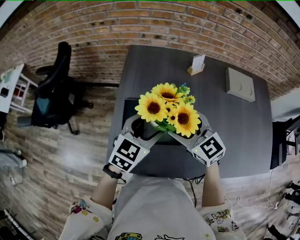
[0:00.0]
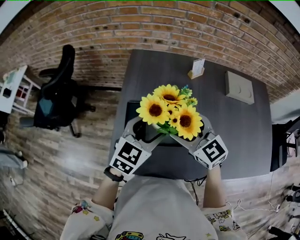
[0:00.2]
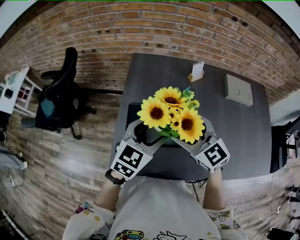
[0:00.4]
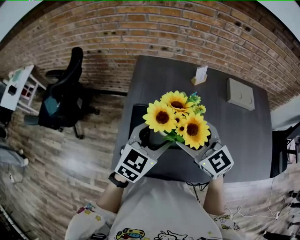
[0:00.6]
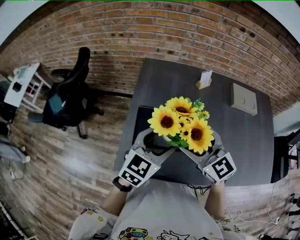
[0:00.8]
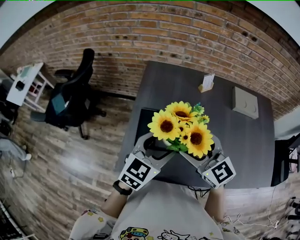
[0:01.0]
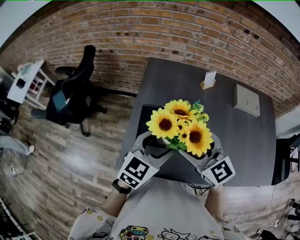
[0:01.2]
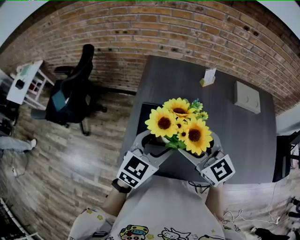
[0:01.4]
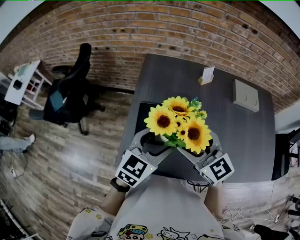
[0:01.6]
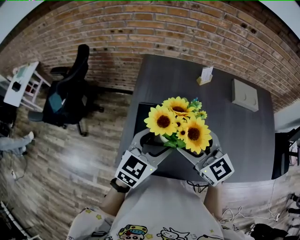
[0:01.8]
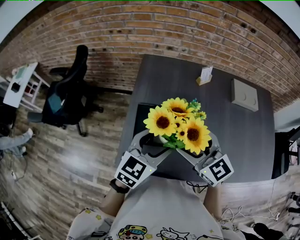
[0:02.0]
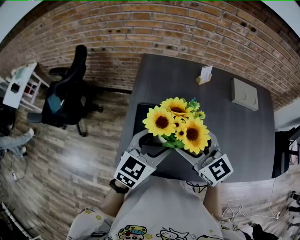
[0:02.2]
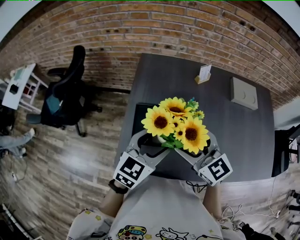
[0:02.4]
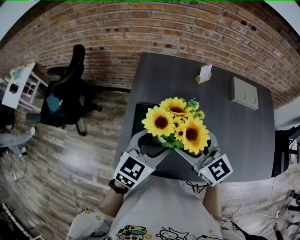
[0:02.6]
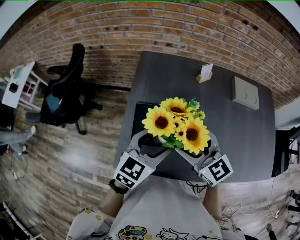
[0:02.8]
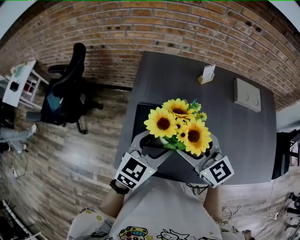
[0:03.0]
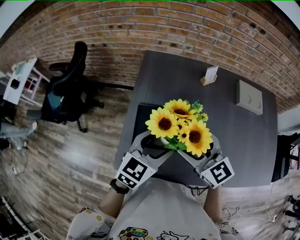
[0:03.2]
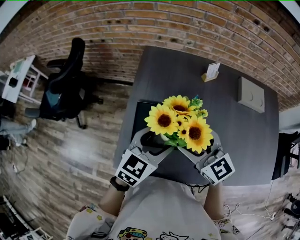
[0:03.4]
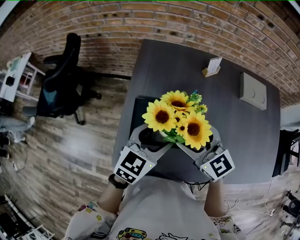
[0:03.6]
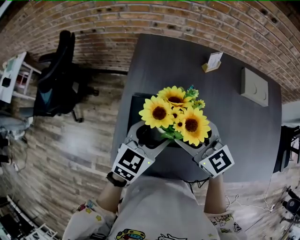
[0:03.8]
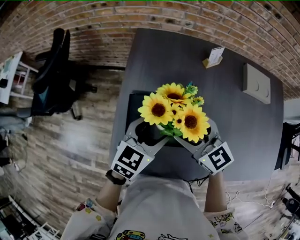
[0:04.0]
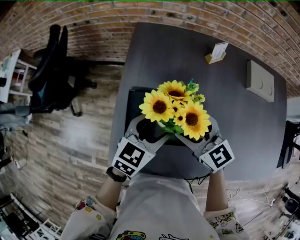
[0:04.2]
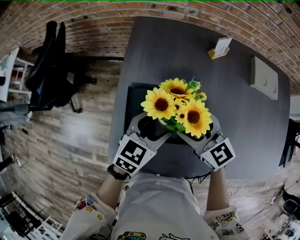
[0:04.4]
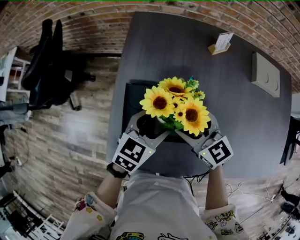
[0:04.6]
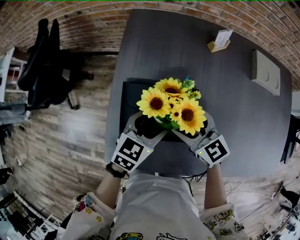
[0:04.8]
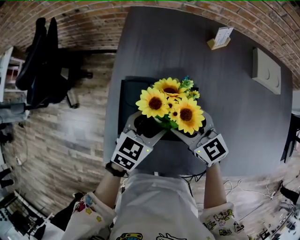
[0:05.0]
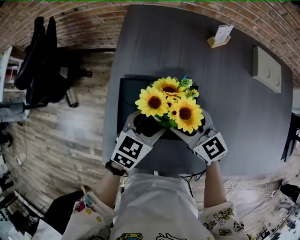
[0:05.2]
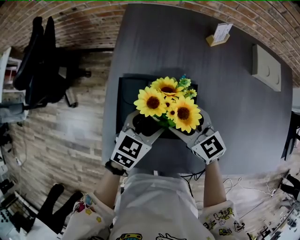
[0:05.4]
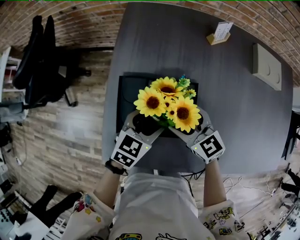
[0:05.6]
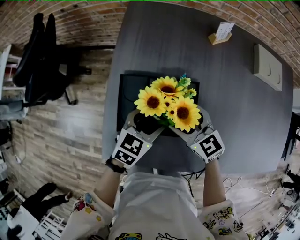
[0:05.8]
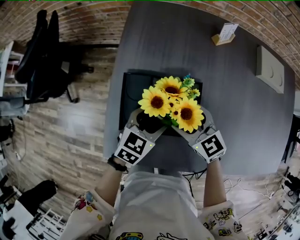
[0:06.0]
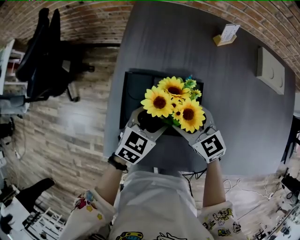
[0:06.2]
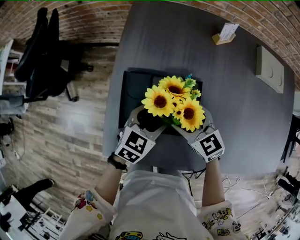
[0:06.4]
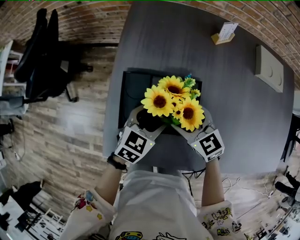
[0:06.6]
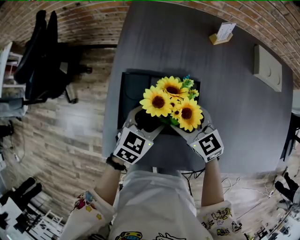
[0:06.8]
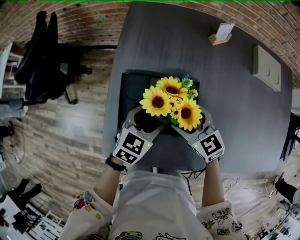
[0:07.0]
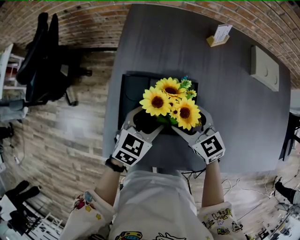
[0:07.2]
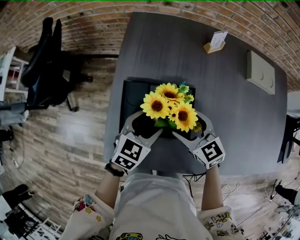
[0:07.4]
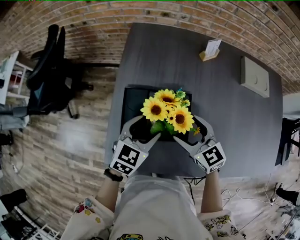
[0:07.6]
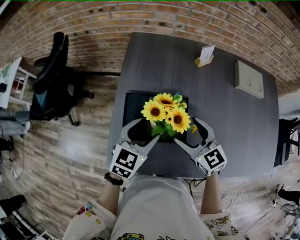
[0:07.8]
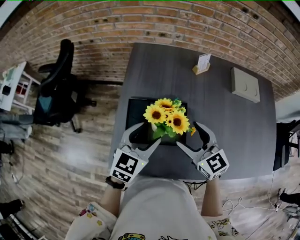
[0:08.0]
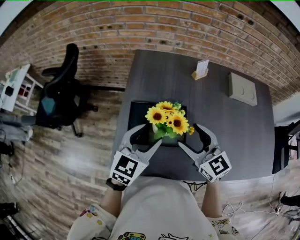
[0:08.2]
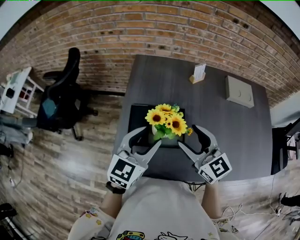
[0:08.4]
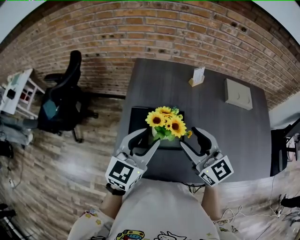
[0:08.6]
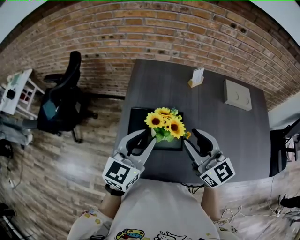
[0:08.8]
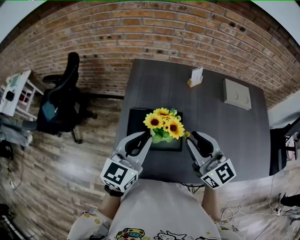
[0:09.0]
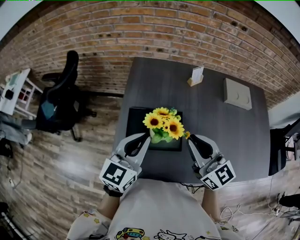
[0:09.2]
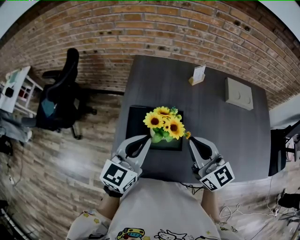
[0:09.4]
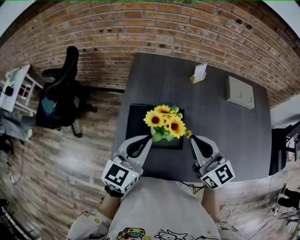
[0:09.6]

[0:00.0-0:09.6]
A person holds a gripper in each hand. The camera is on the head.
0:00.0 to 0:01.6: The grippers both shift backward and upward by some 10 cm.
0:01.6 to 0:03.2: The grippers stay close to where they were, moving slightly.
0:03.2 to 0:04.8: The two grippers go about 15 cm downward.
0:04.8 to 0:06.4: The grippers move only a little.
0:06.4 to 0:08.0: Both grippers travel together upward, some 10 cm.
0:08.0 to 0:09.6: The two grippers go some 10 cm upward. The right gripper closes up; the left gripper closes up.

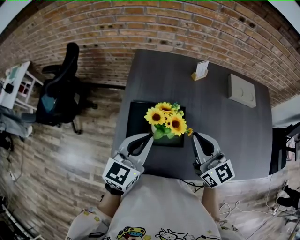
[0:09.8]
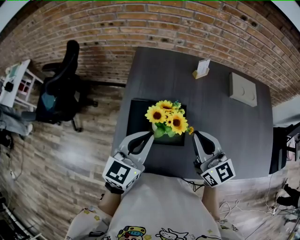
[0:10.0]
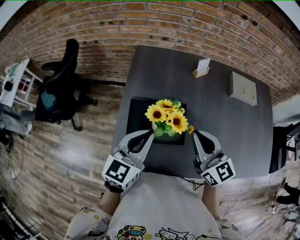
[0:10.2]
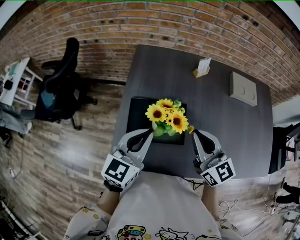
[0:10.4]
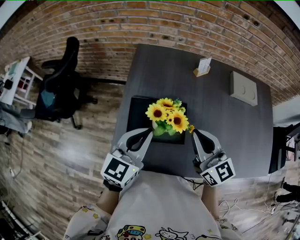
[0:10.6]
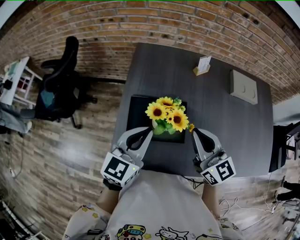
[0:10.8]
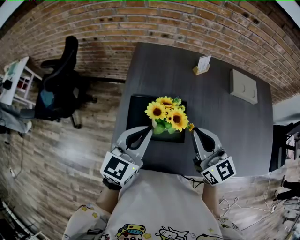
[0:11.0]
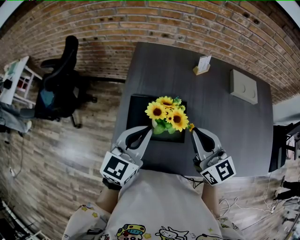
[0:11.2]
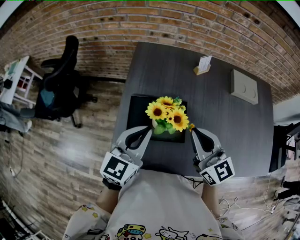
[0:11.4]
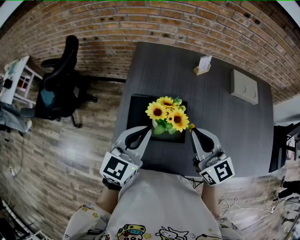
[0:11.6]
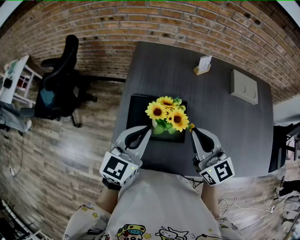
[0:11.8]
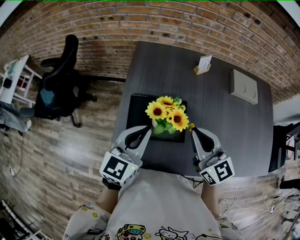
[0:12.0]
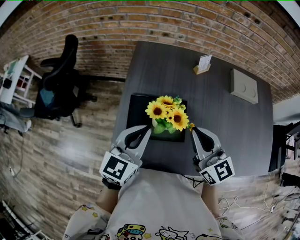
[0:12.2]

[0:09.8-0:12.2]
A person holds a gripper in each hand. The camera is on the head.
0:09.8 to 0:12.2: The two grippers keep their place.

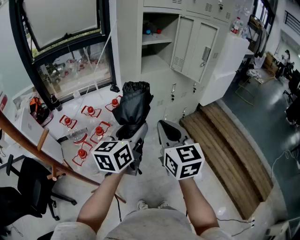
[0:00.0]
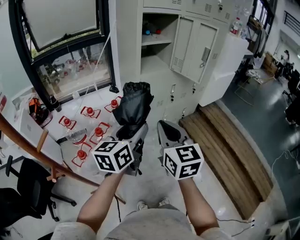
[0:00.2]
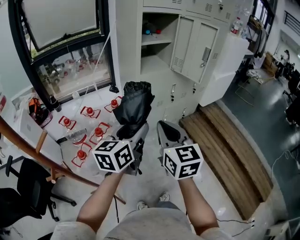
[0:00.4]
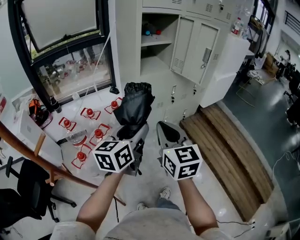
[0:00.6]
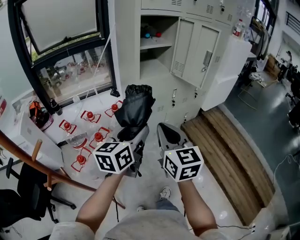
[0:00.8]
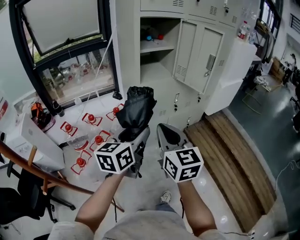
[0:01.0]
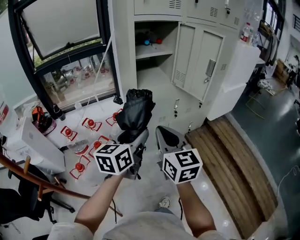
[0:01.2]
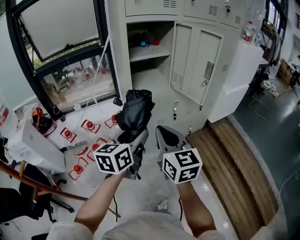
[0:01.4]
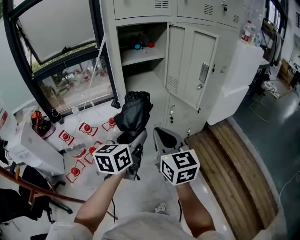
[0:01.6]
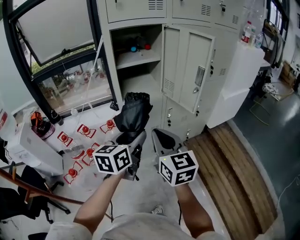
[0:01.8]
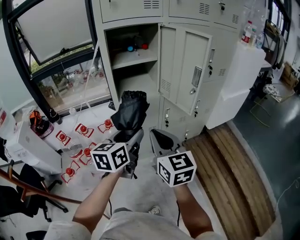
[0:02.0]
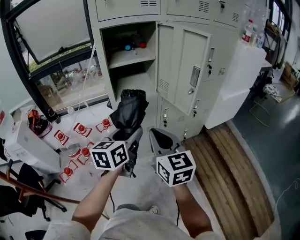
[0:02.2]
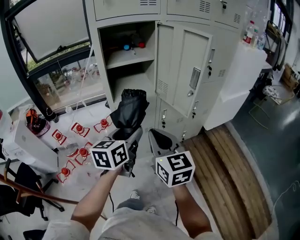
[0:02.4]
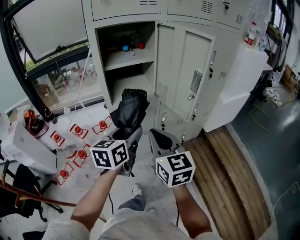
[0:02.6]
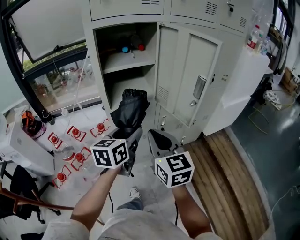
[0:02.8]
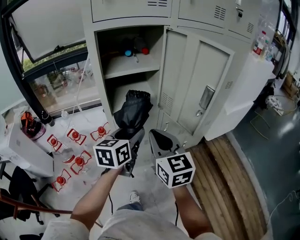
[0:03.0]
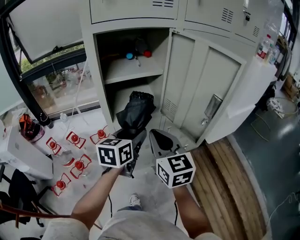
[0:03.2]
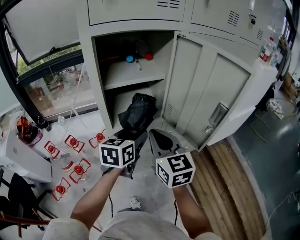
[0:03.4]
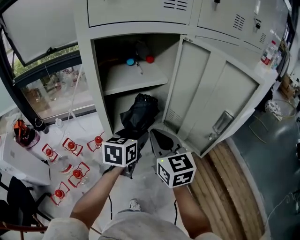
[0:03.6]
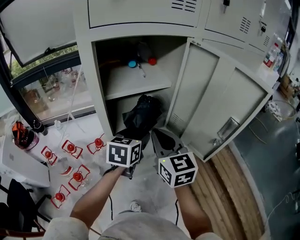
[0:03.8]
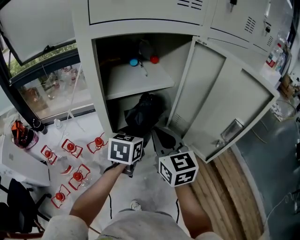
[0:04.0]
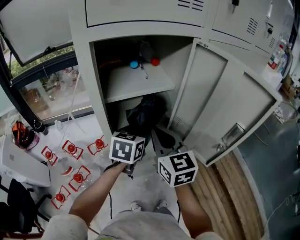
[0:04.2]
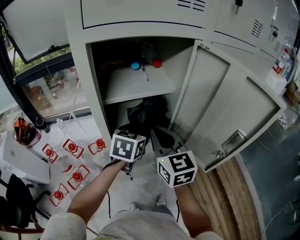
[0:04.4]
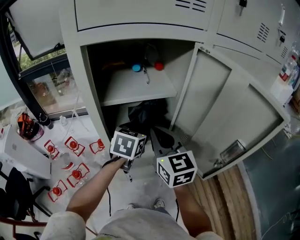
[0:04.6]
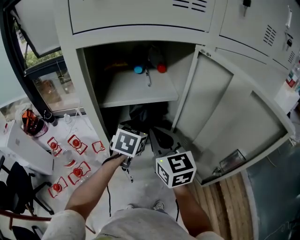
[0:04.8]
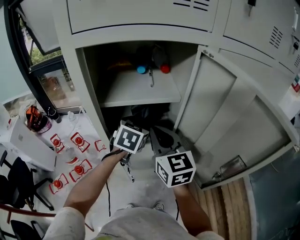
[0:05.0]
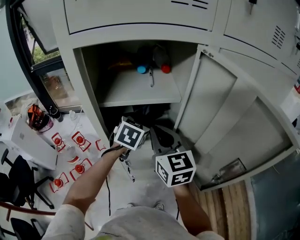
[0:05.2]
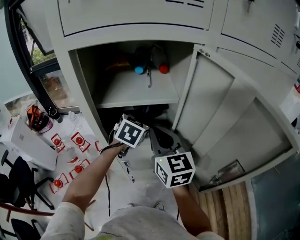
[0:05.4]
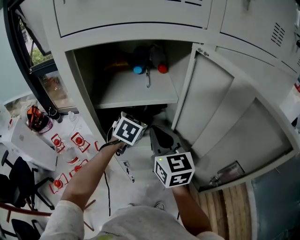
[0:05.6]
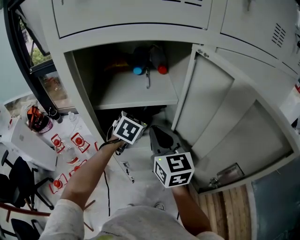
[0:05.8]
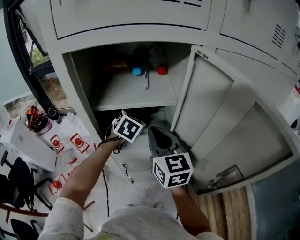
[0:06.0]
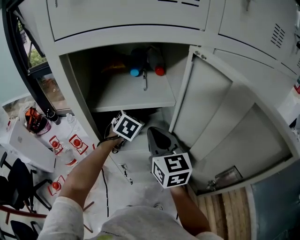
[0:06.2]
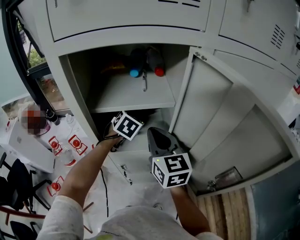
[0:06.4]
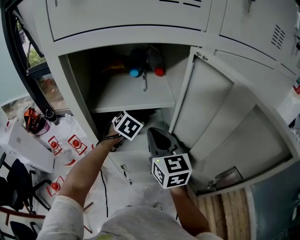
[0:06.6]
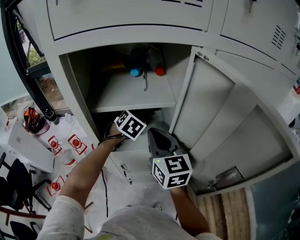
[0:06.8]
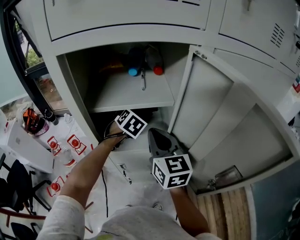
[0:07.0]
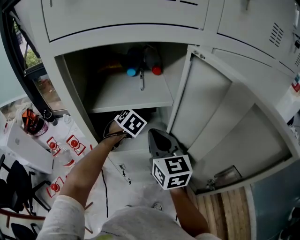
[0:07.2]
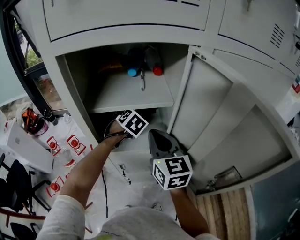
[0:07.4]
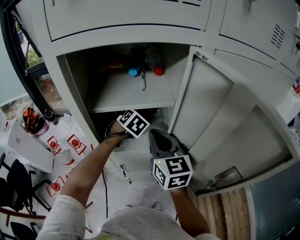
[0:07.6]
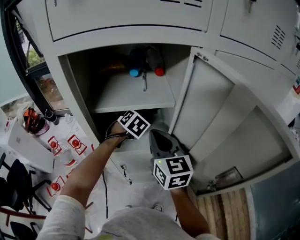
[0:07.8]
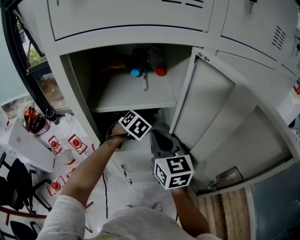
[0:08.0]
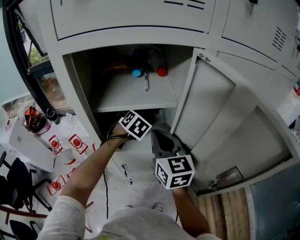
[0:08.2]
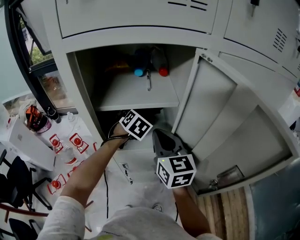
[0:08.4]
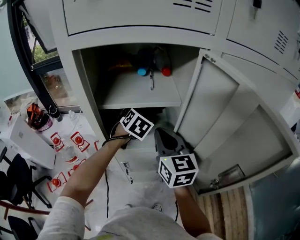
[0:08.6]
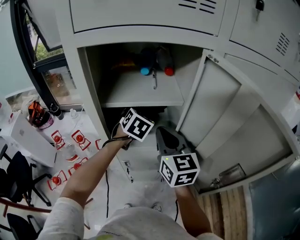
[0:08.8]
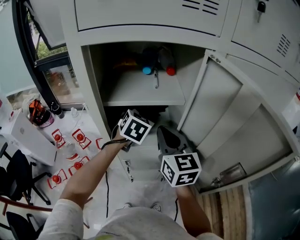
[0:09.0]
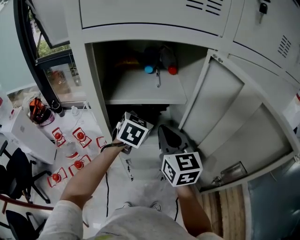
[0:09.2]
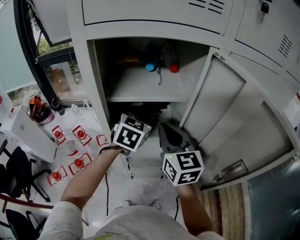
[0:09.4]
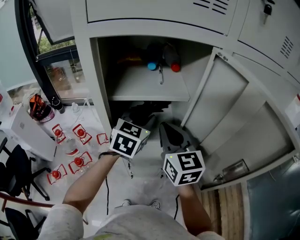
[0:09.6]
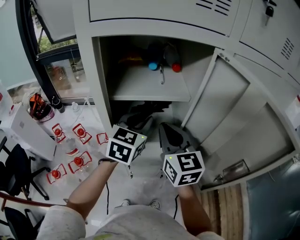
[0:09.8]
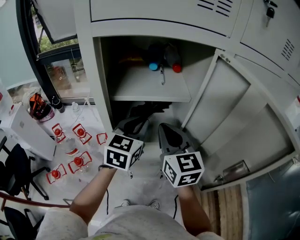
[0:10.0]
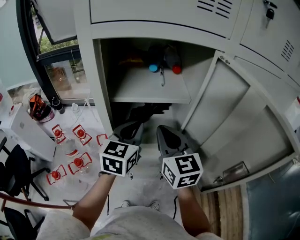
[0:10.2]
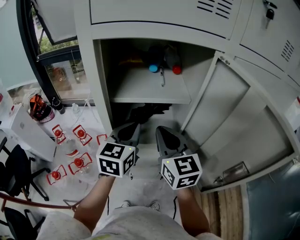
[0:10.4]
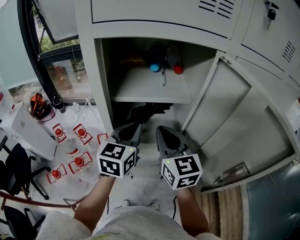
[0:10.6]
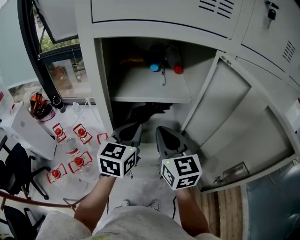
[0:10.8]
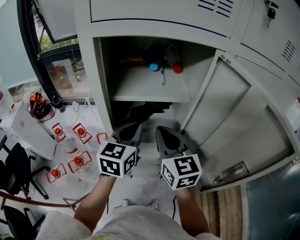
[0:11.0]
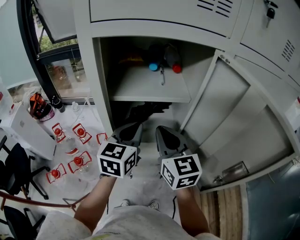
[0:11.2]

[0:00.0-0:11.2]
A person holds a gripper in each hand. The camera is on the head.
0:00.0 to 0:01.6: Both grippers travel together forward and to the right, roughly 20 cm.
0:01.6 to 0:03.2: The grippers both shift forward by some 20 cm.
0:03.2 to 0:04.8: The two grippers go about 15 cm forward. The left gripper turns by roughly 20 degrees.
0:04.8 to 0:06.4: The left gripper shifts some 10 cm forward.
0:06.4 to 0:08.0: There are only small adjustments of the grippers.
0:08.0 to 0:09.6: The left gripper heads upward and backward, covering roughly 15 cm, turns by about 40 degrees, and closes its fingers.
0:09.6 to 0:11.2: The left gripper changes place by some 5 cm, and closes up.

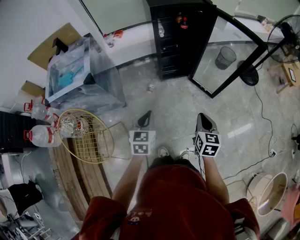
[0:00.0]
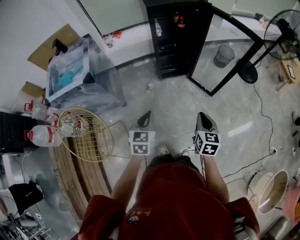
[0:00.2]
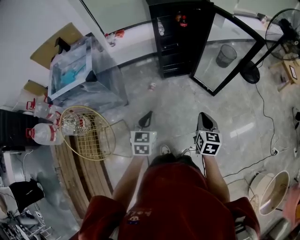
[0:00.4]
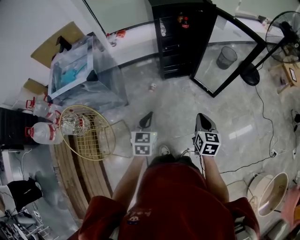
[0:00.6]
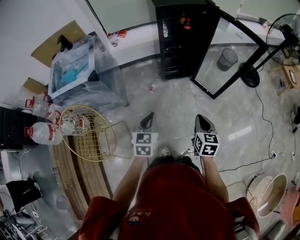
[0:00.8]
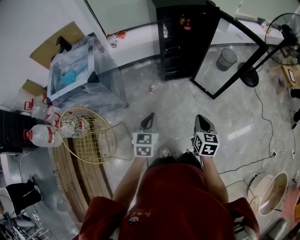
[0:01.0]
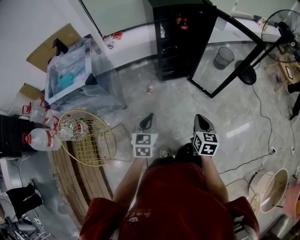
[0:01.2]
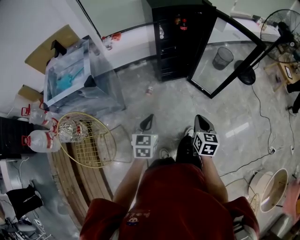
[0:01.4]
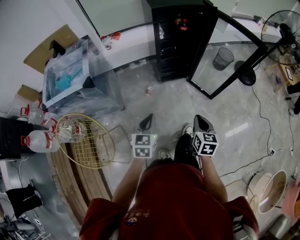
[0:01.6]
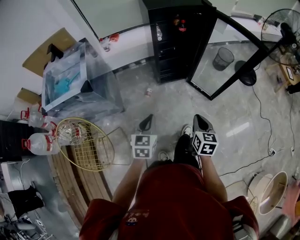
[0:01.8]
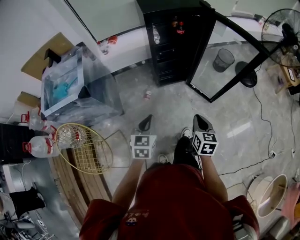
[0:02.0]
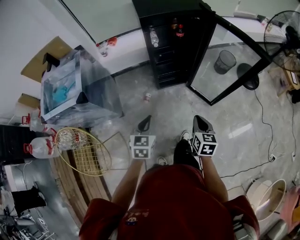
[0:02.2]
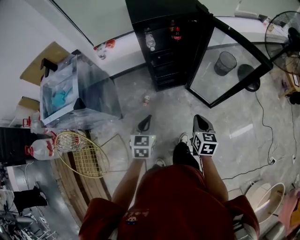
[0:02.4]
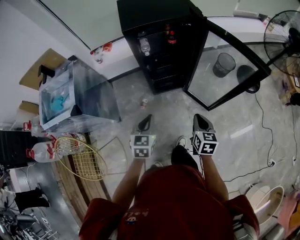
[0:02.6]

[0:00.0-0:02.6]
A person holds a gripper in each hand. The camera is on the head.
0:00.0 to 0:01.2: The grippers move only a little.
0:01.2 to 0:02.6: The grippers both shift forward and to the right by approximately 25 cm.
